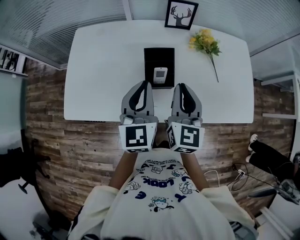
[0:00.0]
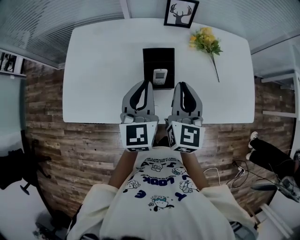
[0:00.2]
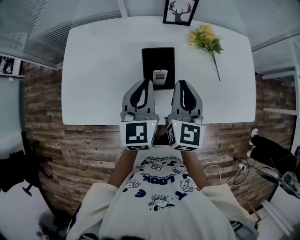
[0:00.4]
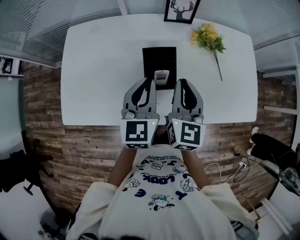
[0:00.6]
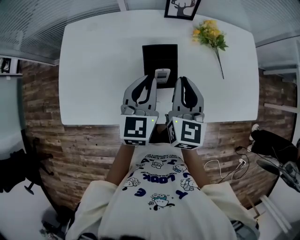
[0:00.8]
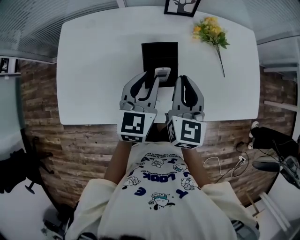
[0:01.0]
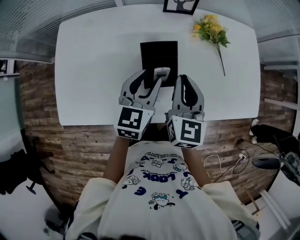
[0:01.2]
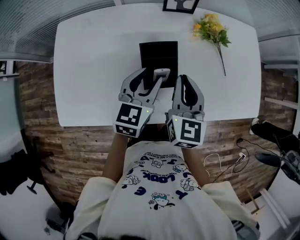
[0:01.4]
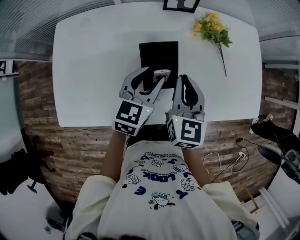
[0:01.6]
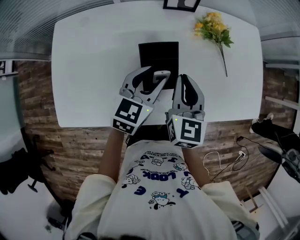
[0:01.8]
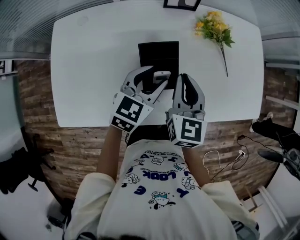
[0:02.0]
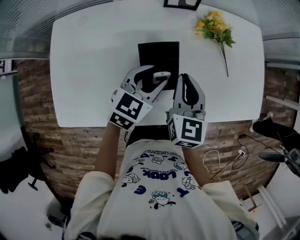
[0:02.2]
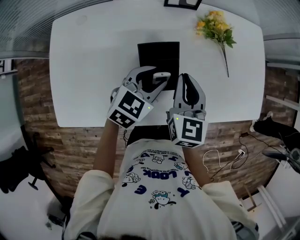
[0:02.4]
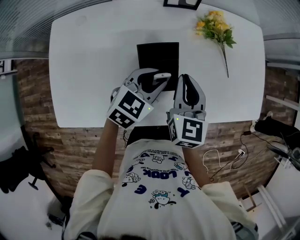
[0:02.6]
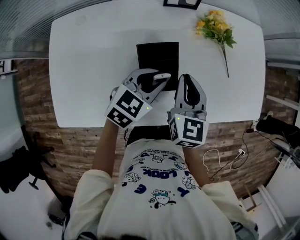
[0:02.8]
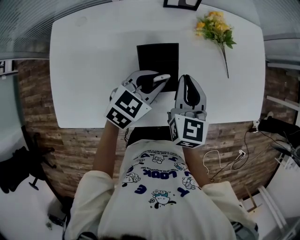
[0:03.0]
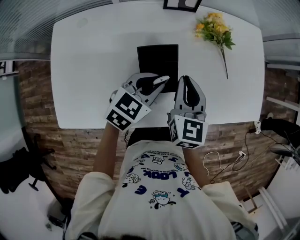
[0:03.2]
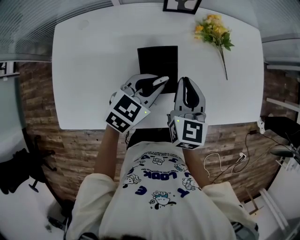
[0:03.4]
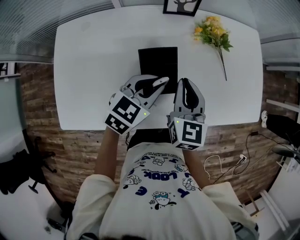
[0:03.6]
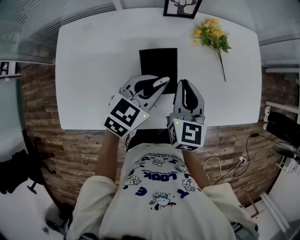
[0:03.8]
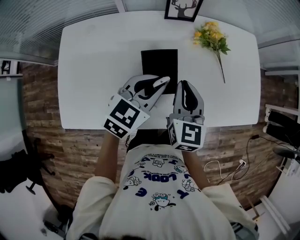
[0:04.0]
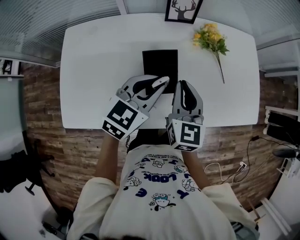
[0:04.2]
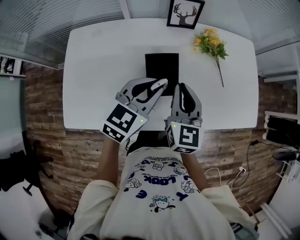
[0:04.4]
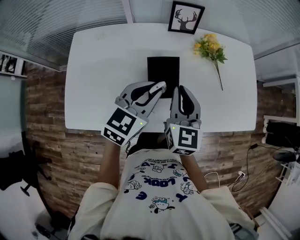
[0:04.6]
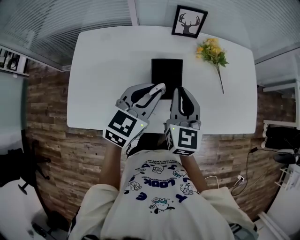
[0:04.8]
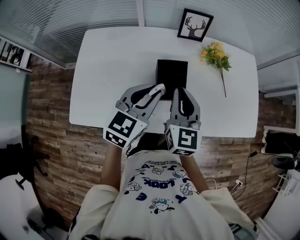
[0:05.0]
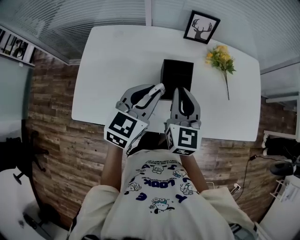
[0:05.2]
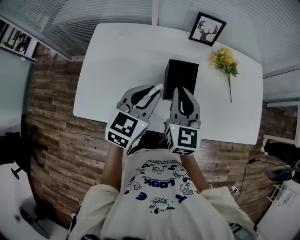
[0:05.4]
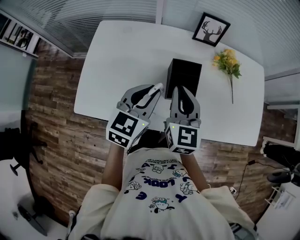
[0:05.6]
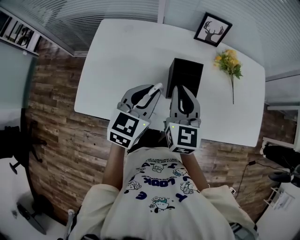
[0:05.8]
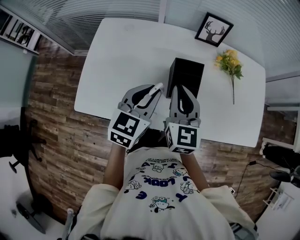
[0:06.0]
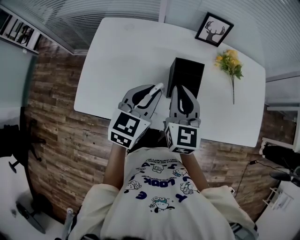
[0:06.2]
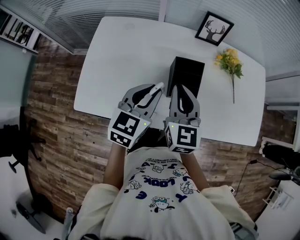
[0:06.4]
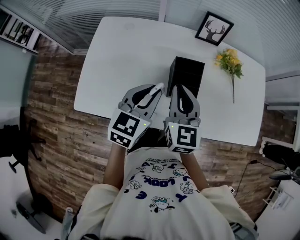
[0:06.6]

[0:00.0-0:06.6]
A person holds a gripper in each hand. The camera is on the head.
0:00.0 to 0:01.6: The right gripper moves forward and downward, some 10 cm. The left gripper is displaced downward and forward by roughly 15 cm, swivels about 30 degrees, and opens.
0:01.6 to 0:03.2: The left gripper changes its angle by approximately 20 degrees, and closes.
0:03.2 to 0:05.0: Both grippers move upward and backward, roughly 15 cm. The left gripper changes its angle by roughly 20 degrees.
0:05.0 to 0:06.6: The grippers both shift to the left by some 5 cm.

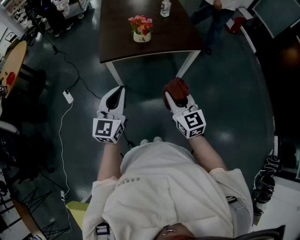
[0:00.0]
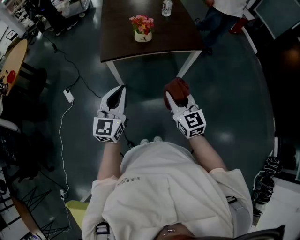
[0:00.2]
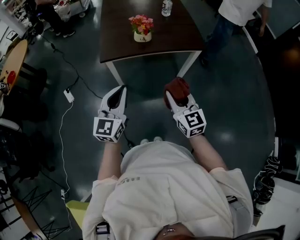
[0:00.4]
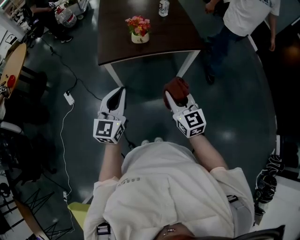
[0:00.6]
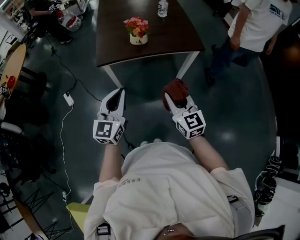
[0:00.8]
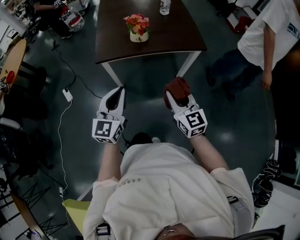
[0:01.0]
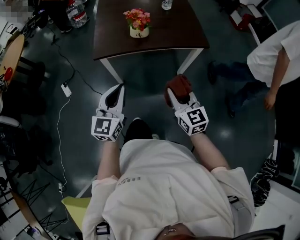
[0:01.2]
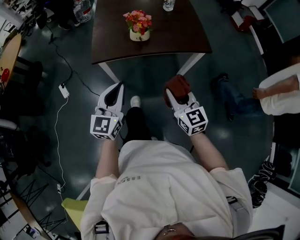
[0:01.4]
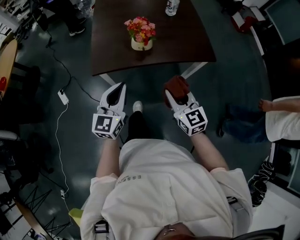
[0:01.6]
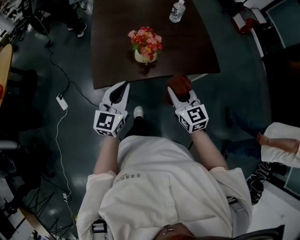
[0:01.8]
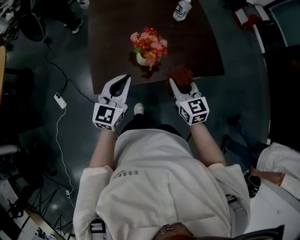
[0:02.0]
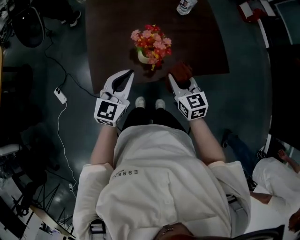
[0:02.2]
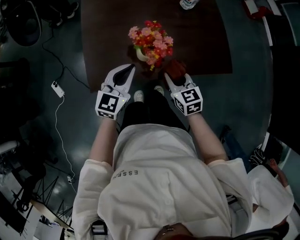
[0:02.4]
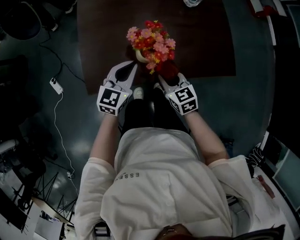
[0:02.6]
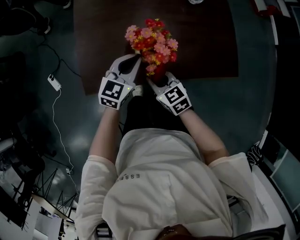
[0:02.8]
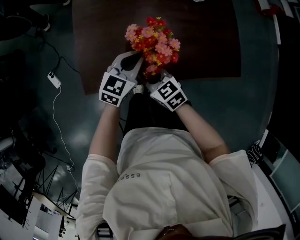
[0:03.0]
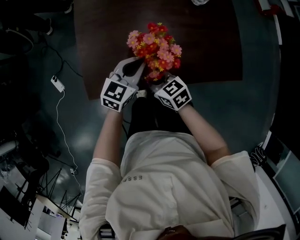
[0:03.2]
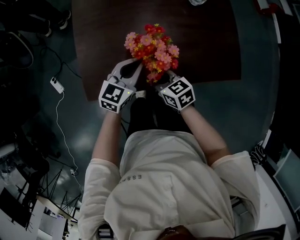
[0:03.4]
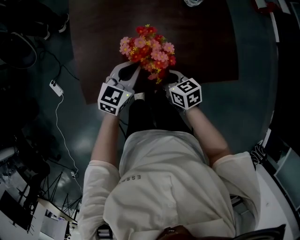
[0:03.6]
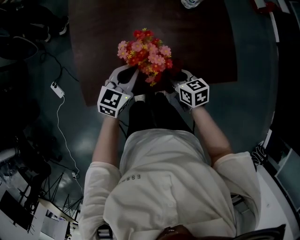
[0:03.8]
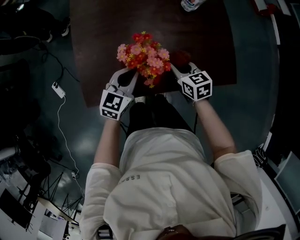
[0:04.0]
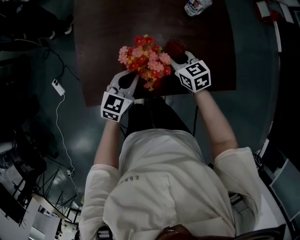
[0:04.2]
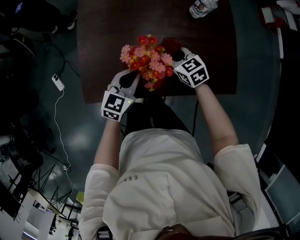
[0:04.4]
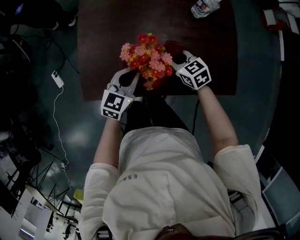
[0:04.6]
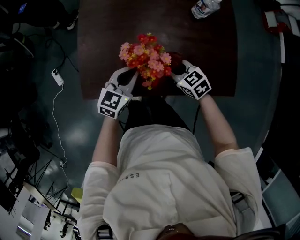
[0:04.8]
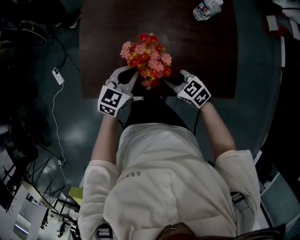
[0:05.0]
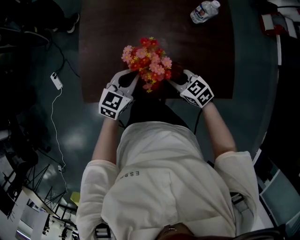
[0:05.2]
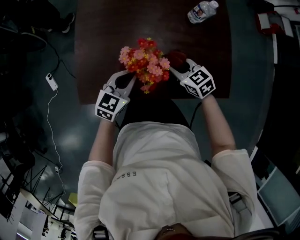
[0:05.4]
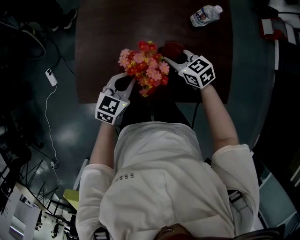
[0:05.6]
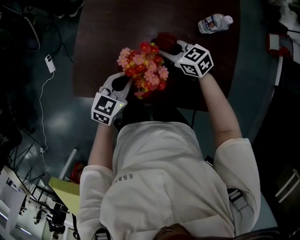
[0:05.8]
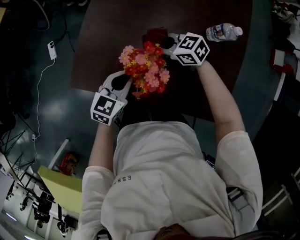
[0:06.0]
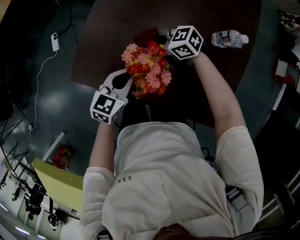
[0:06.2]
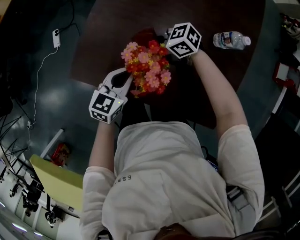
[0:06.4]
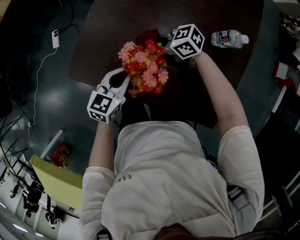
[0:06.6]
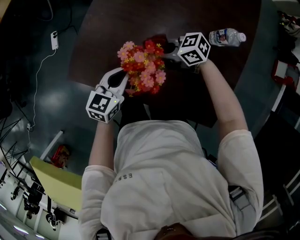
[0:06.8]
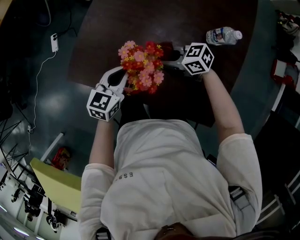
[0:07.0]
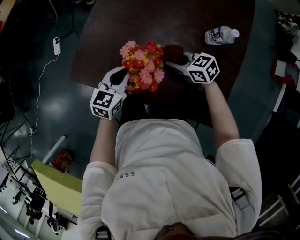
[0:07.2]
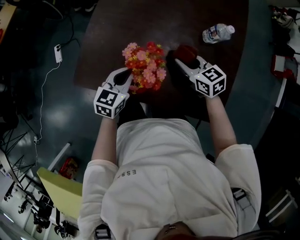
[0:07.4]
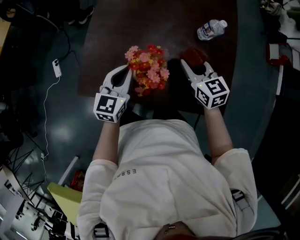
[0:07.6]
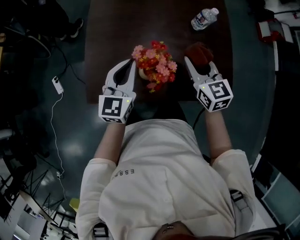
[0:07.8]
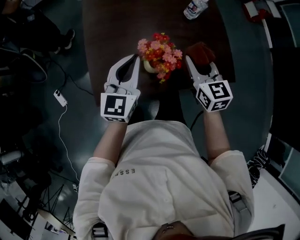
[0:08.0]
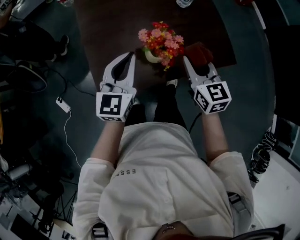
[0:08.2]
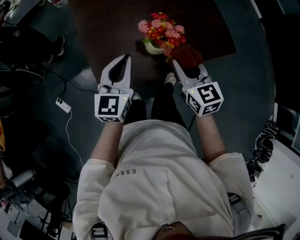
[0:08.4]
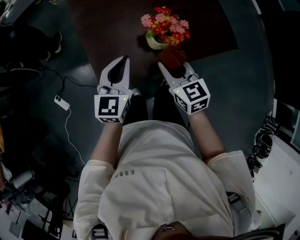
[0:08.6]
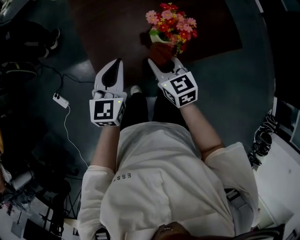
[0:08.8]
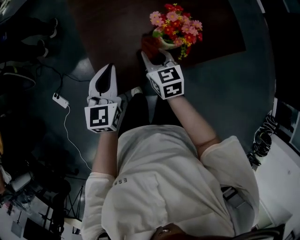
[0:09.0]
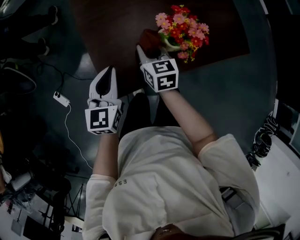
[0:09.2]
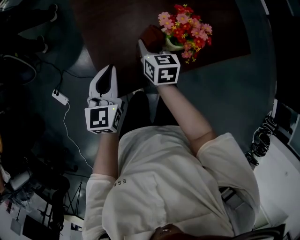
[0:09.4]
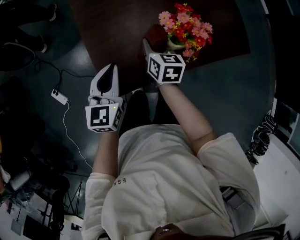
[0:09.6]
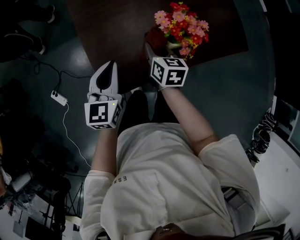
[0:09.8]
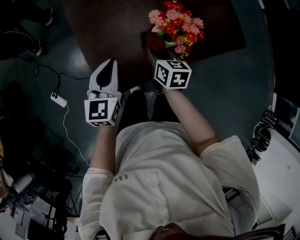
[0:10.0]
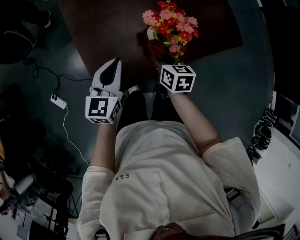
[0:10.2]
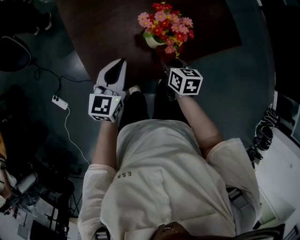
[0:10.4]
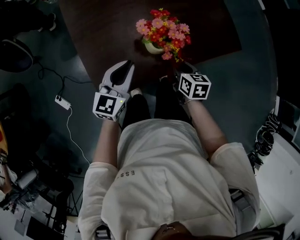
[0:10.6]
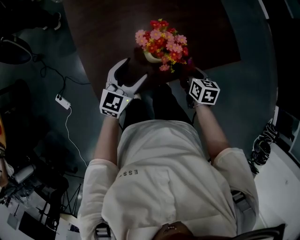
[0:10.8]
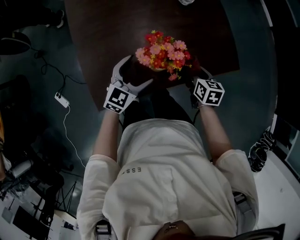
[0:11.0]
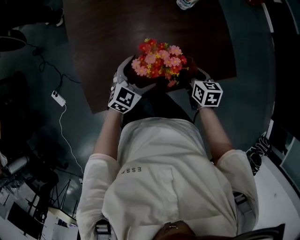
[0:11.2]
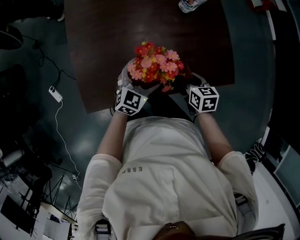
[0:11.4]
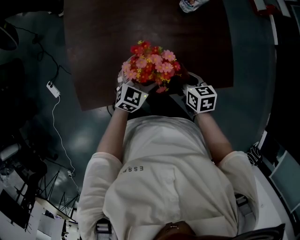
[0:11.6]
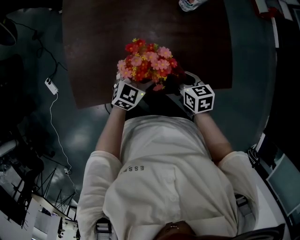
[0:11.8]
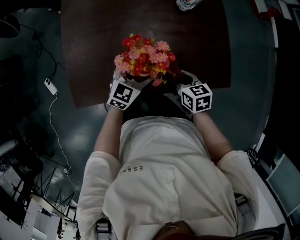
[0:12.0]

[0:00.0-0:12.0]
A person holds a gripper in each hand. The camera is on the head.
0:00.0 to 0:01.6: The two grippers go about 20 cm forward.
0:01.6 to 0:03.0: The left gripper is displaced forward and downward by approximately 30 cm, and rotates some 30 degrees, while the right gripper is displaced forward, downward and to the left by roughly 30 cm, and swivels some 30 degrees.
0:03.0 to 0:04.4: The right gripper goes roughly 20 cm forward and to the right.
0:04.4 to 0:06.0: The right gripper moves some 10 cm, and swivels about 40 degrees.
0:06.0 to 0:07.6: The left gripper is displaced upward by about 5 cm. Meanwhile the right gripper ends up about 15 cm from where it was, and changes its angle by about 50 degrees.
0:07.6 to 0:09.0: The right gripper moves some 25 cm, and turns by roughly 40 degrees; the left gripper moves some 10 cm upward and comes back.
0:09.0 to 0:10.4: The left gripper is displaced to the right by about 5 cm, while the right gripper shifts about 10 cm to the right, and turns by roughly 30 degrees.
0:10.4 to 0:12.0: The two grippers go approximately 20 cm to the right and forward. The left gripper opens its fingers. Meanwhile the right gripper swivels roughly 30 degrees.

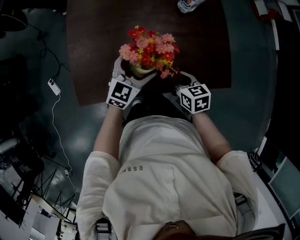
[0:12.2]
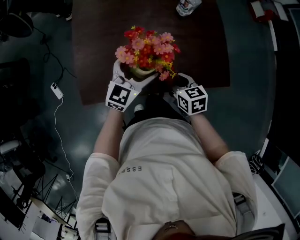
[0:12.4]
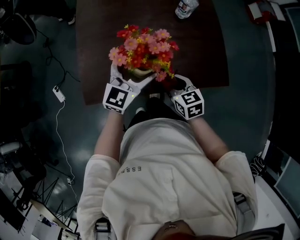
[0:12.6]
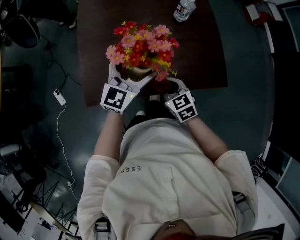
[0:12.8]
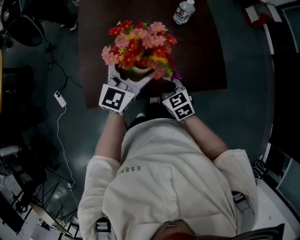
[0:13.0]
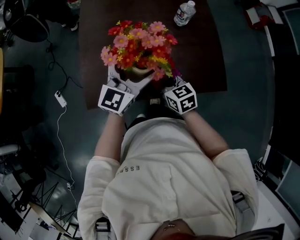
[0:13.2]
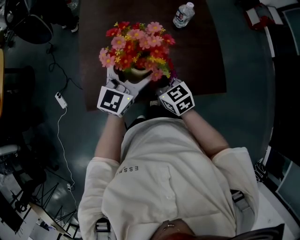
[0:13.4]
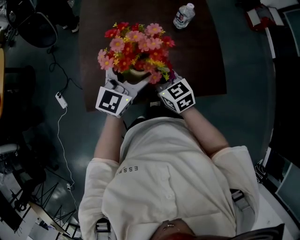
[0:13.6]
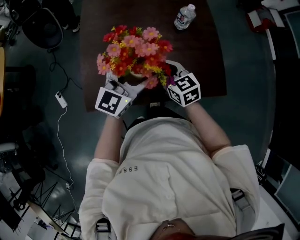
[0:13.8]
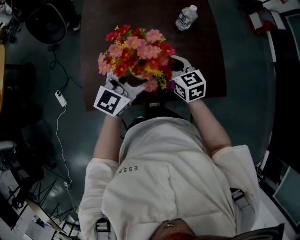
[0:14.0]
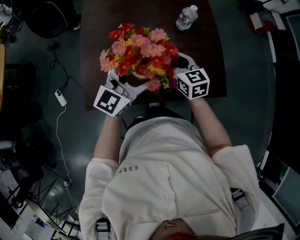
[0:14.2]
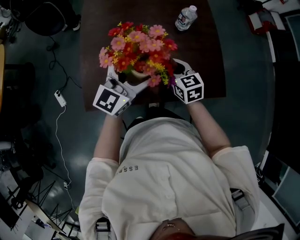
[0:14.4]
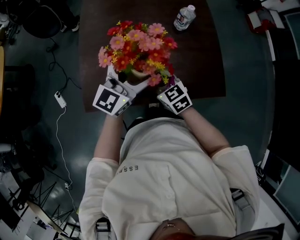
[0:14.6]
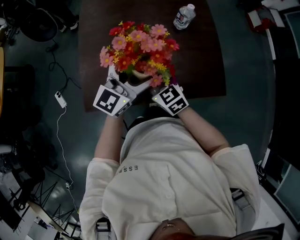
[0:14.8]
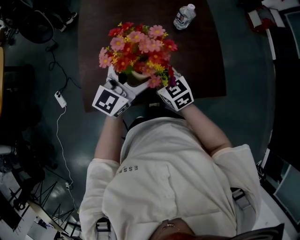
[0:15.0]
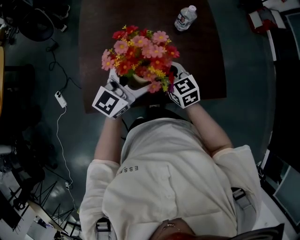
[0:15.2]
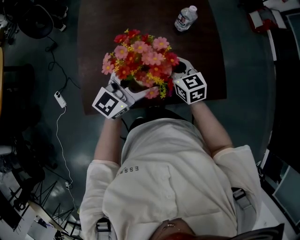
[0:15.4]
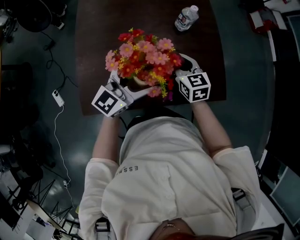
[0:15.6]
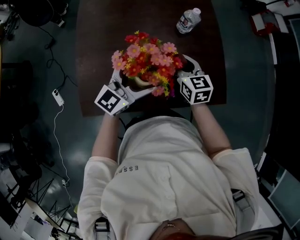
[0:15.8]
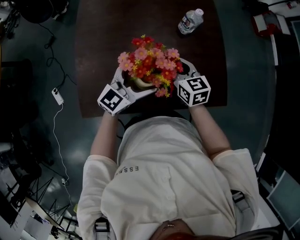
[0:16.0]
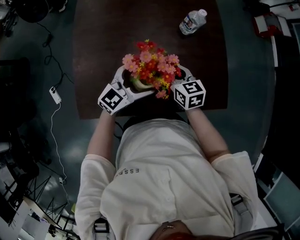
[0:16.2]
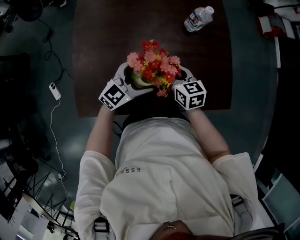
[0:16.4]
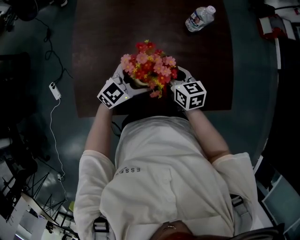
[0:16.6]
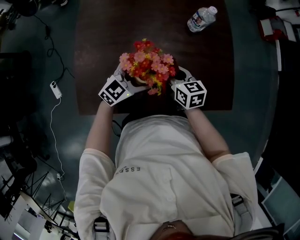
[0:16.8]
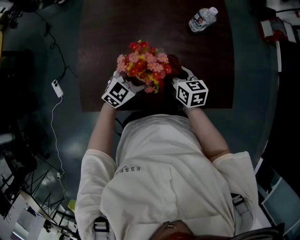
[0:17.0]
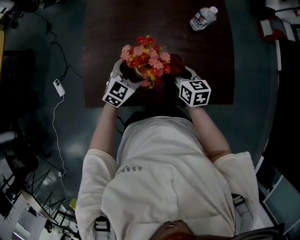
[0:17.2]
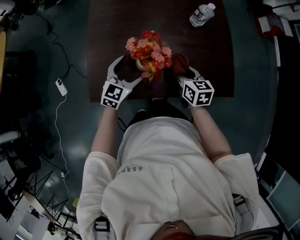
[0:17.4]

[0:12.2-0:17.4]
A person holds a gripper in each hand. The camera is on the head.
0:12.2 to 0:14.0: The left gripper shifts about 15 cm upward, and changes its angle by some 20 degrees. Meanwhile the right gripper moves upward and forward, some 15 cm, and rotates about 20 degrees.
0:15.6 to 0:17.4: The right gripper is displaced backward by some 5 cm. Meanwhile the left gripper travels downward and to the left by roughly 20 cm, and turns by some 30 degrees.
